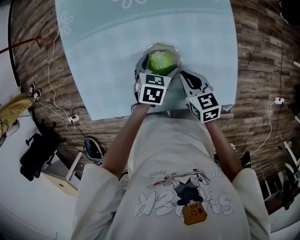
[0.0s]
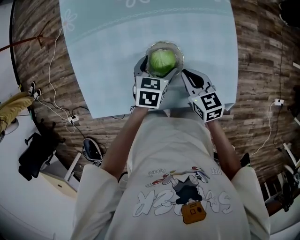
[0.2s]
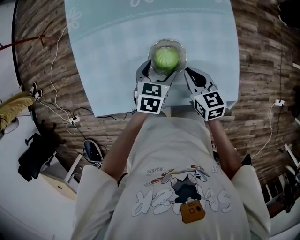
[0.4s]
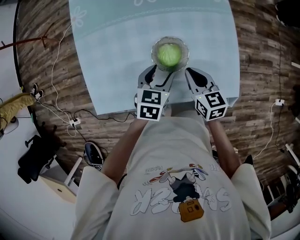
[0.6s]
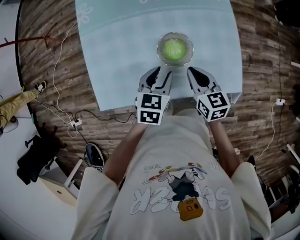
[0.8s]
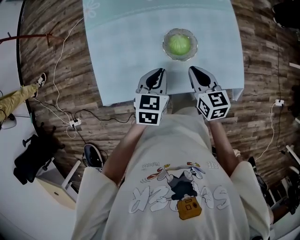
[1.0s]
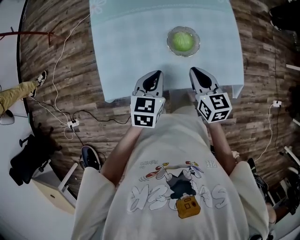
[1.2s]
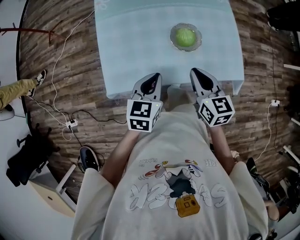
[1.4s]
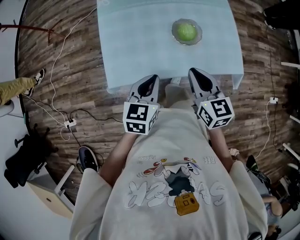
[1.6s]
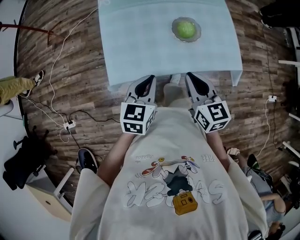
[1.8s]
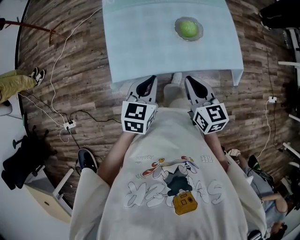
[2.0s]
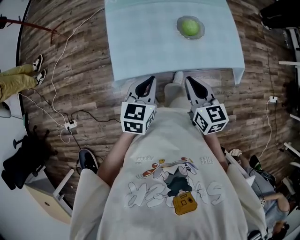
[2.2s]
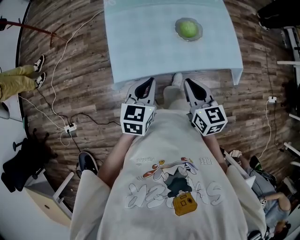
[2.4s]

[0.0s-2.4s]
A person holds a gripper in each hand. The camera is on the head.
0.0s to 1.2s: The right gripper moves upward, backward and to the left, some 15 cm; the left gripper shifts roughly 25 cm backward, upward and to the left, turns by approximately 20 degrees, and closes its fingers.
1.2s to 2.4s: The two grippers go about 20 cm backward and to the left.

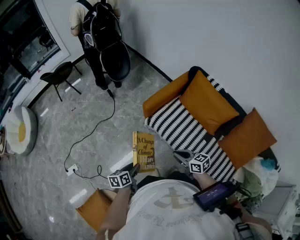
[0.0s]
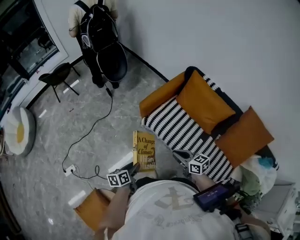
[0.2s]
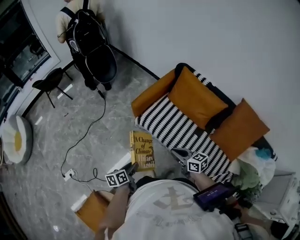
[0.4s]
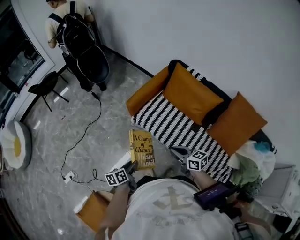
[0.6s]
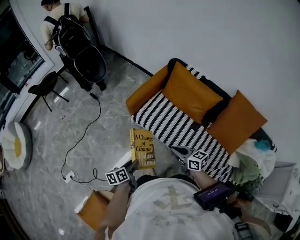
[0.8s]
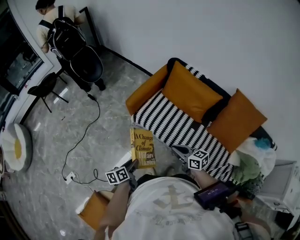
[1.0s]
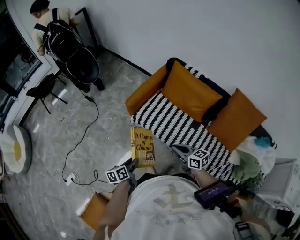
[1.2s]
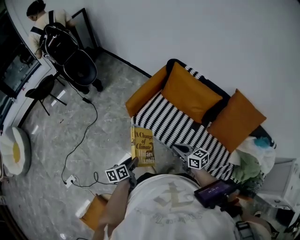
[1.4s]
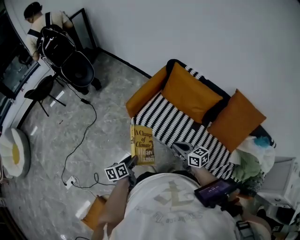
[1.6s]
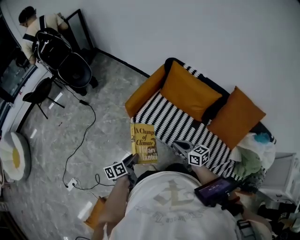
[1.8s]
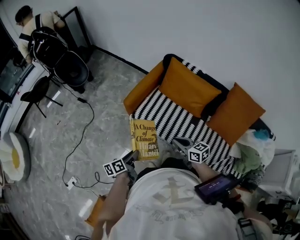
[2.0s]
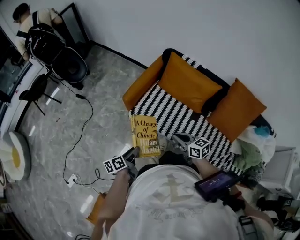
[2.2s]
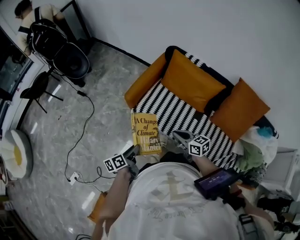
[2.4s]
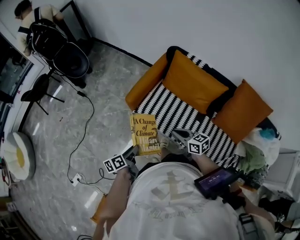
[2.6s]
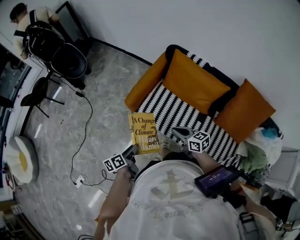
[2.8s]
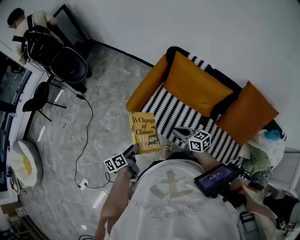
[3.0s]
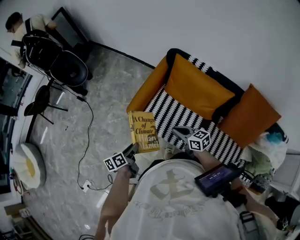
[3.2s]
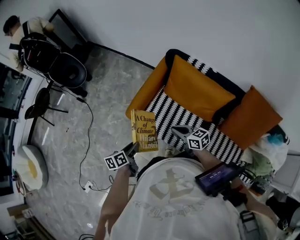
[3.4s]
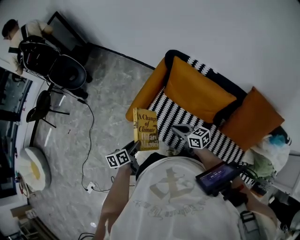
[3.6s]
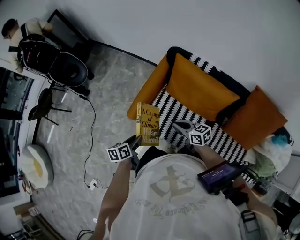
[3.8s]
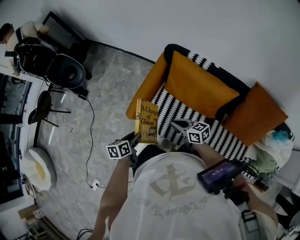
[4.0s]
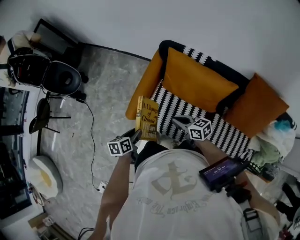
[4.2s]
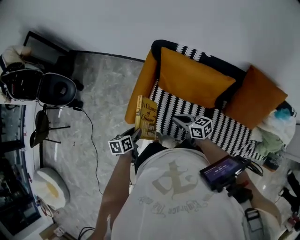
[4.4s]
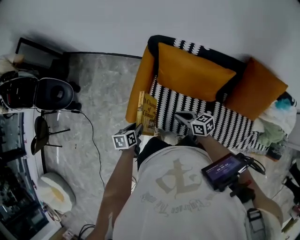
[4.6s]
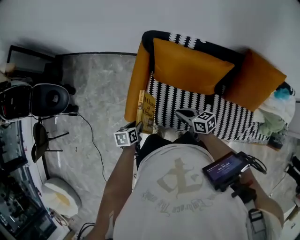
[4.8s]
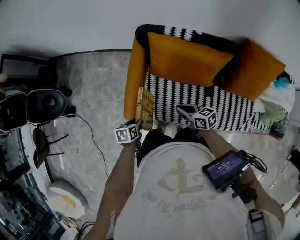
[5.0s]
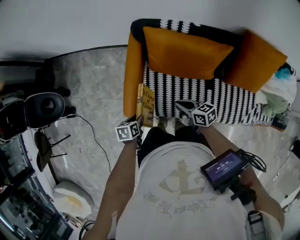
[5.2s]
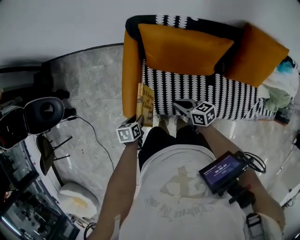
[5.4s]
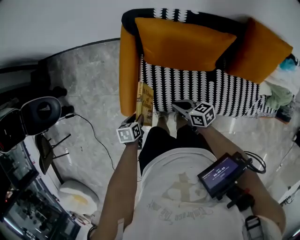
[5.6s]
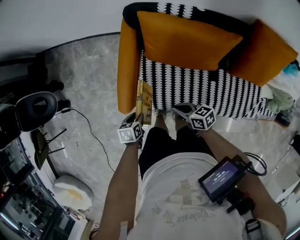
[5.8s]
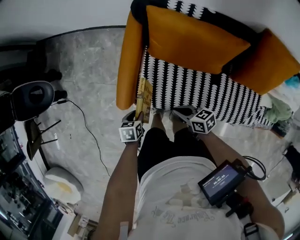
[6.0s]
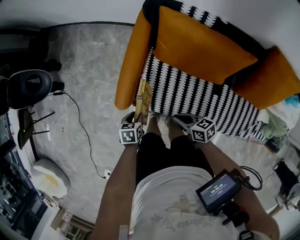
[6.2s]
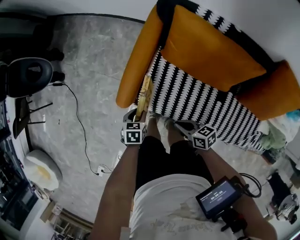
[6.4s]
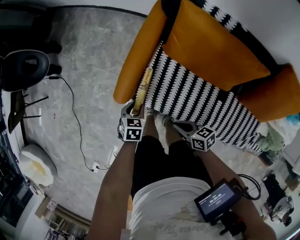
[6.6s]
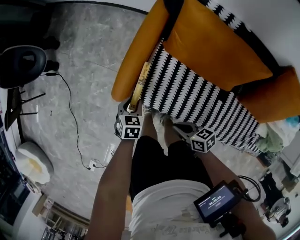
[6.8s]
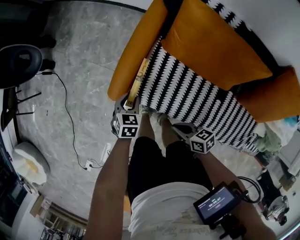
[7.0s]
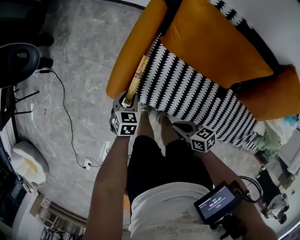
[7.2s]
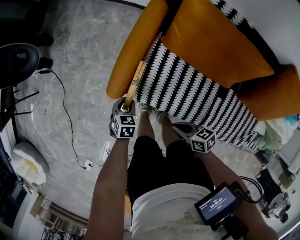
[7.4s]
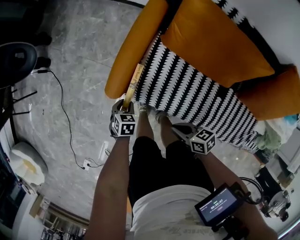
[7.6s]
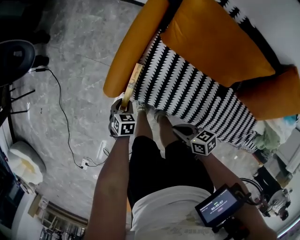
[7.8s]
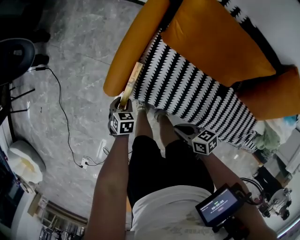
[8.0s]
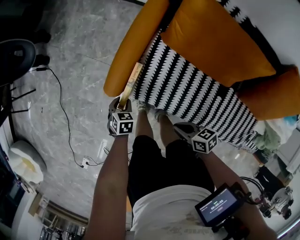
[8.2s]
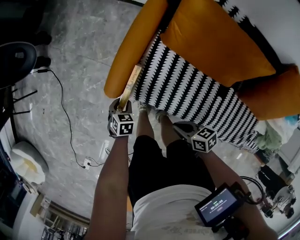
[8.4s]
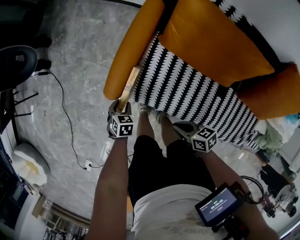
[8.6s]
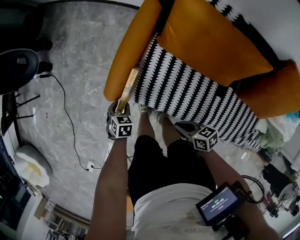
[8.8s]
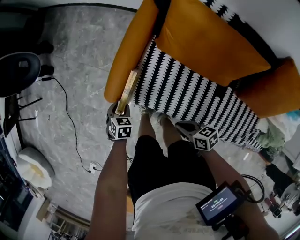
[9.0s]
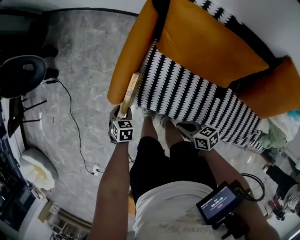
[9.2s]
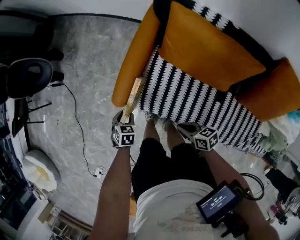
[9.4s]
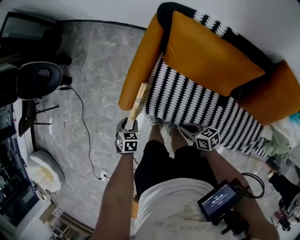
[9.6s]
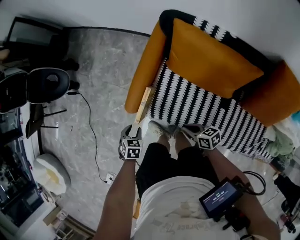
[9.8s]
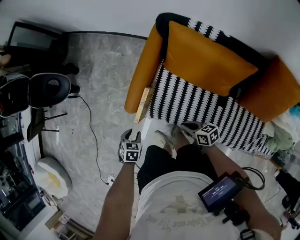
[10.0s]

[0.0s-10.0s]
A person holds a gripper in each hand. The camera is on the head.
0.0s to 1.4s: The right gripper shifts roughly 5 cm to the right.
1.4s to 2.8s: The two grippers go about 15 cm forward.
2.8s to 4.2s: Both grippers move forward, about 20 cm. The left gripper changes its angle by some 30 degrees.
4.2s to 5.8s: Both grippers travel together downward, about 15 cm. The left gripper turns by roughly 30 degrees. The right gripper swivels roughly 20 degrees.
5.8s to 7.2s: The left gripper heads downward, covering about 5 cm, and changes its angle by some 30 degrees. Meanwhile the right gripper moves approximately 10 cm.
7.2s to 8.6s: The left gripper goes some 10 cm to the left and downward.
8.6s to 10.0s: The left gripper travels upward by about 15 cm; the right gripper goes some 5 cm upward.

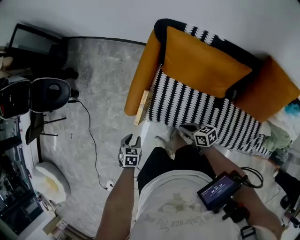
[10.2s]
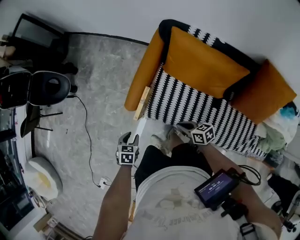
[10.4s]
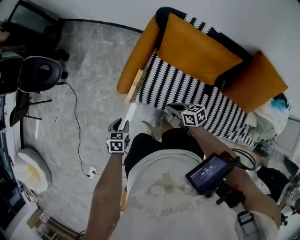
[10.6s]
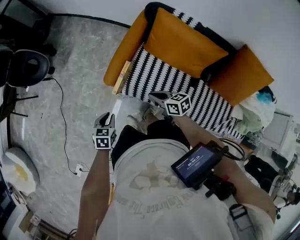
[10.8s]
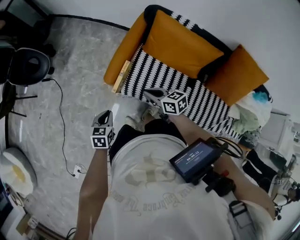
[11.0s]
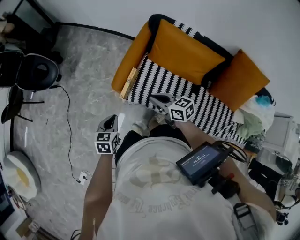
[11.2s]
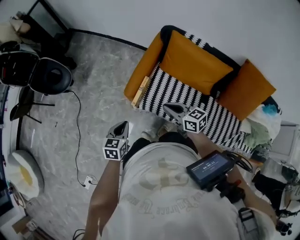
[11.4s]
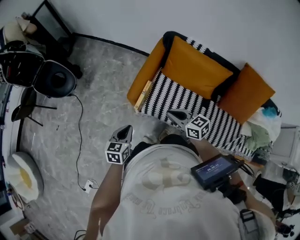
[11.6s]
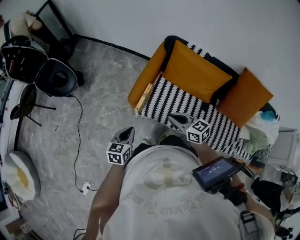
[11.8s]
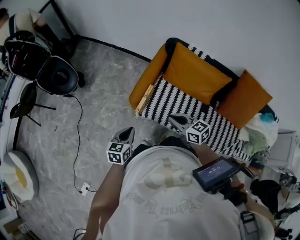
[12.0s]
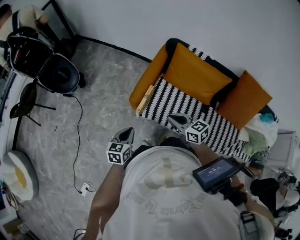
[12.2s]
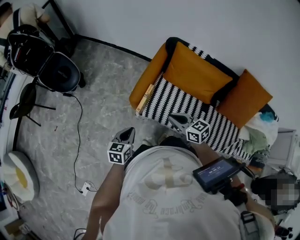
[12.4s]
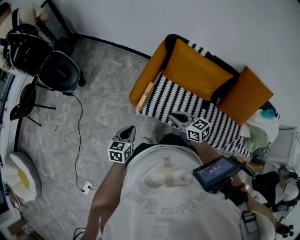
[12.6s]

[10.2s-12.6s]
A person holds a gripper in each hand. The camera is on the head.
10.2s to 11.4s: The right gripper shifts about 20 cm upward and to the left, and rotates about 30 degrees, while the left gripper is displaced upward, backward and to the left by roughly 20 cm, changes its angle by some 30 degrees, and closes.
11.4s to 12.6s: There are only small adjustments of the grippers.

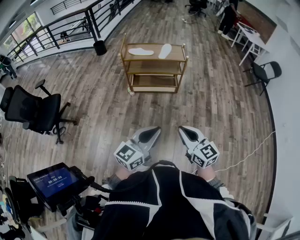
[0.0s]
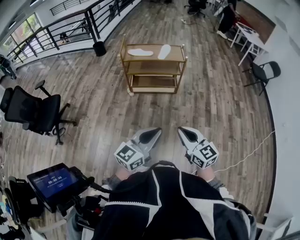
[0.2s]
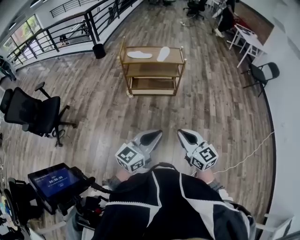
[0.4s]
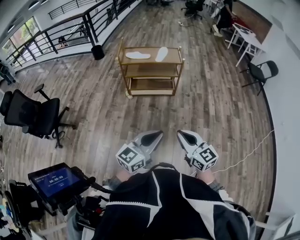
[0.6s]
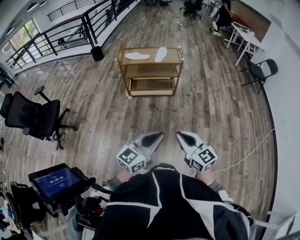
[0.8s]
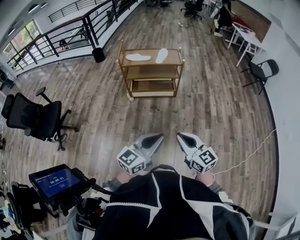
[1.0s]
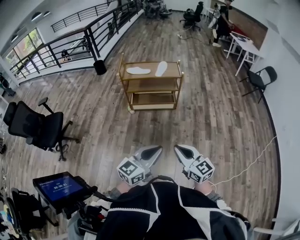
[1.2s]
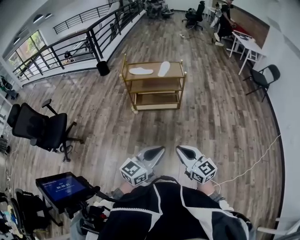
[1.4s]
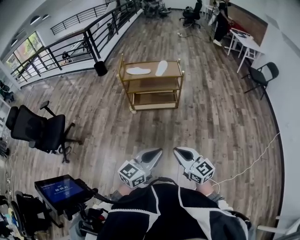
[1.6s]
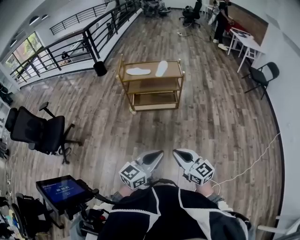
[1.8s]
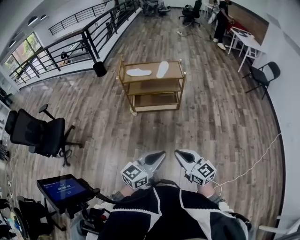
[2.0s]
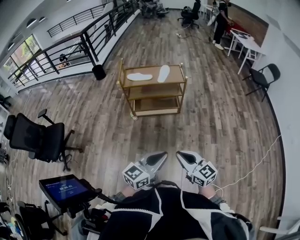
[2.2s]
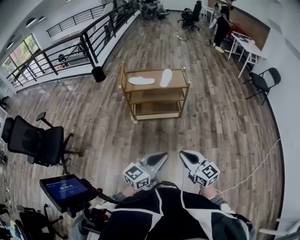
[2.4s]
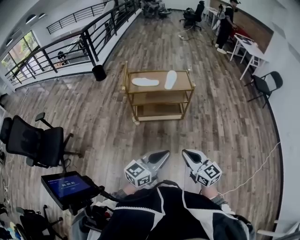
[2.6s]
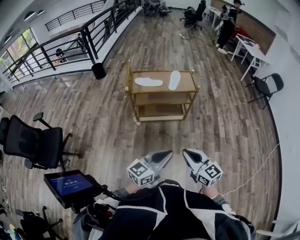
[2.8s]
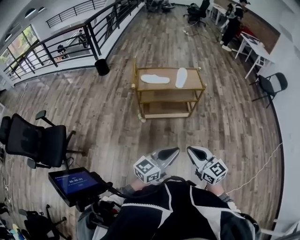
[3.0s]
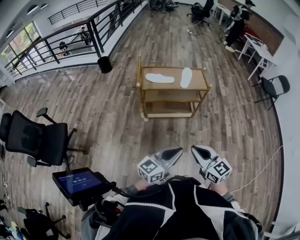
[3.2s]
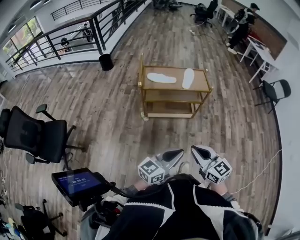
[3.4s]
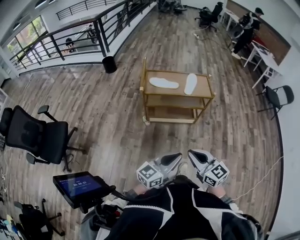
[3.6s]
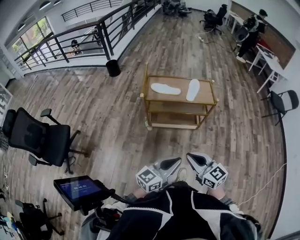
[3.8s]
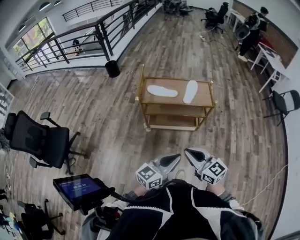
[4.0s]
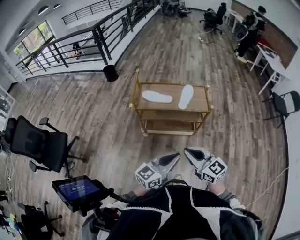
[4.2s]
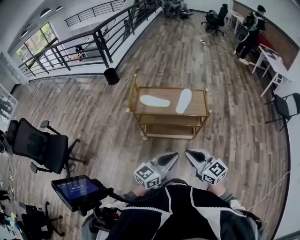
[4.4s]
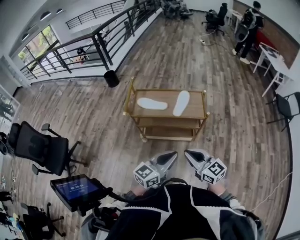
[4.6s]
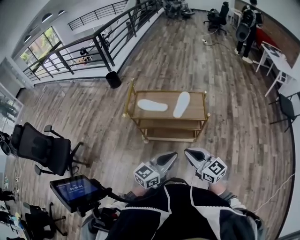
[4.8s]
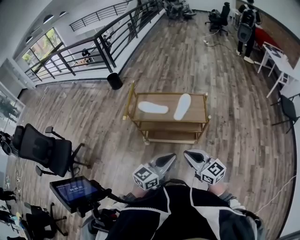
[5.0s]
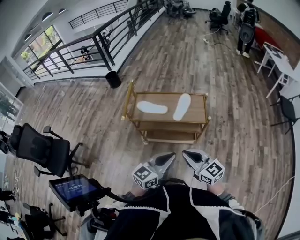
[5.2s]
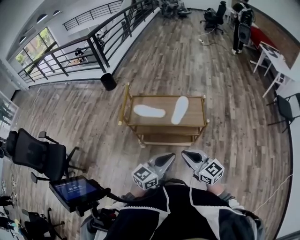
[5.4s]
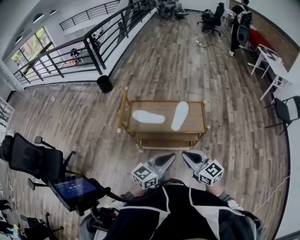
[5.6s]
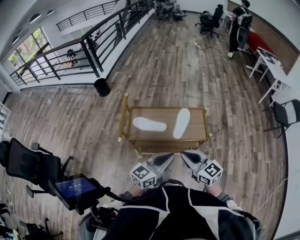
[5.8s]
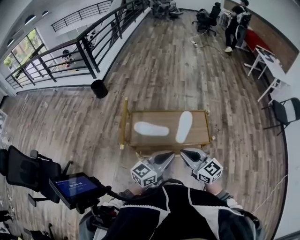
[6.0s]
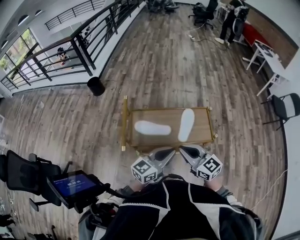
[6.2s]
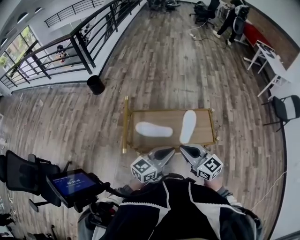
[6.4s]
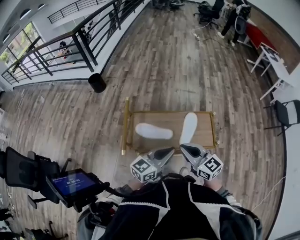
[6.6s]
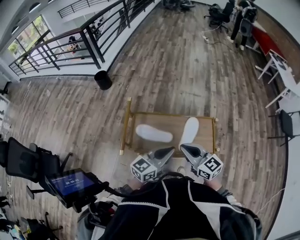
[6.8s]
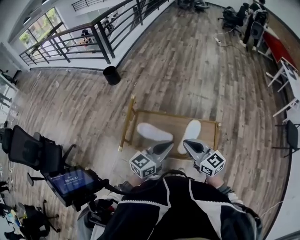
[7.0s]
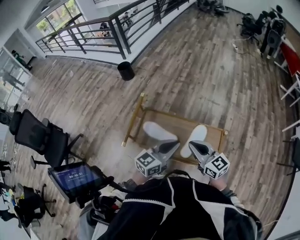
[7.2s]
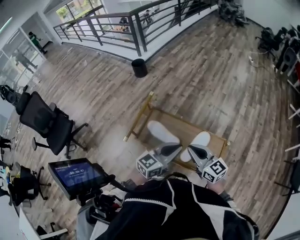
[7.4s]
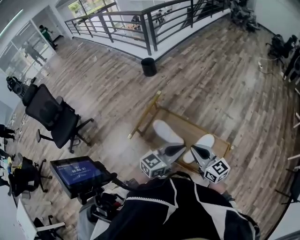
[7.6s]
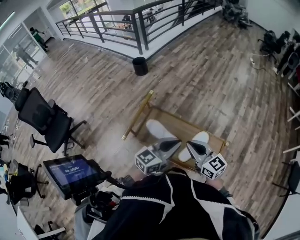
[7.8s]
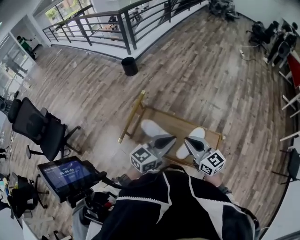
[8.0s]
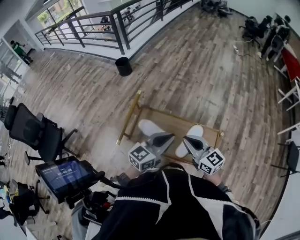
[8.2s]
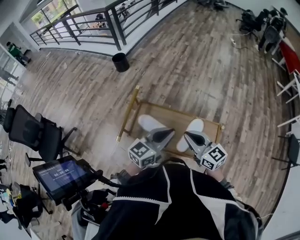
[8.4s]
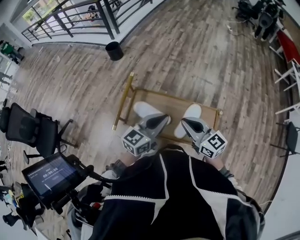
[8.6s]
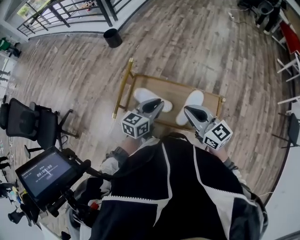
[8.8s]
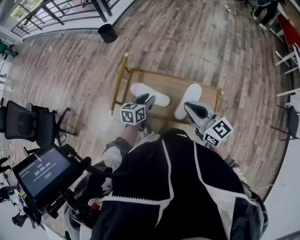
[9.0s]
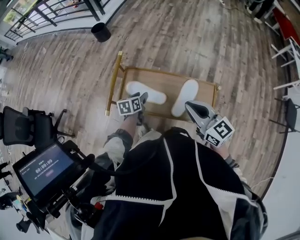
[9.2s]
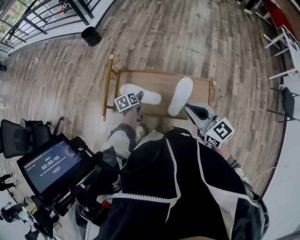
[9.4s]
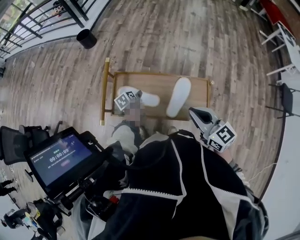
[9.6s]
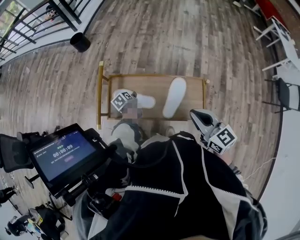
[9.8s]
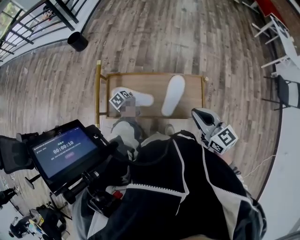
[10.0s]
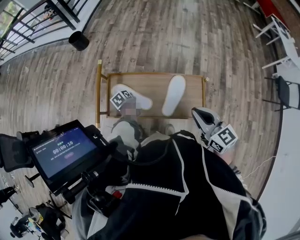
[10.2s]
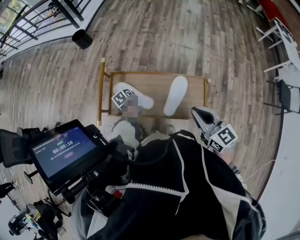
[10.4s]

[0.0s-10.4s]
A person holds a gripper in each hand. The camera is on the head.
0.0s to 1.4s: The grippers make only small movements.
1.4s to 3.0s: Both grippers travel together forward and to the left, roughly 25 cm.
3.0s to 4.4s: The right gripper travels forward by approximately 20 cm, while the left gripper heads forward and to the right, covering some 20 cm.
4.4s to 6.0s: Both grippers move forward, roughly 25 cm.
6.0s to 7.4s: Both grippers travel together forward, some 15 cm. The left gripper rotates about 20 degrees. Meanwhile the right gripper rotates approximately 20 degrees.
7.4s to 9.0s: The left gripper is displaced downward, to the left and forward by approximately 20 cm, turns by roughly 30 degrees, and opens up.
9.0s to 10.4s: The right gripper travels to the right by some 10 cm, while the left gripper goes approximately 20 cm downward and forward, turns by some 40 degrees, and closes.
